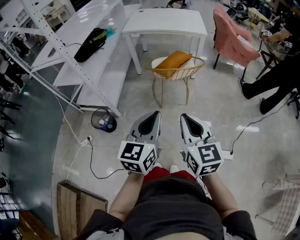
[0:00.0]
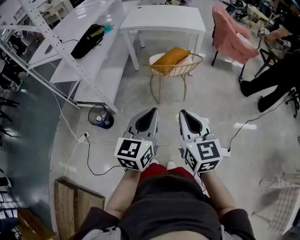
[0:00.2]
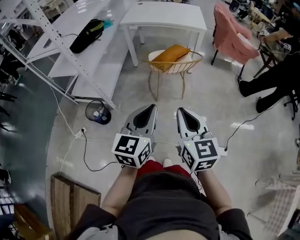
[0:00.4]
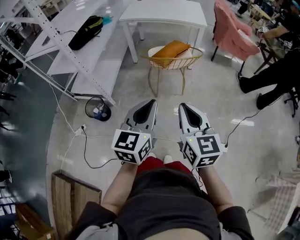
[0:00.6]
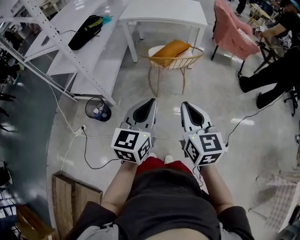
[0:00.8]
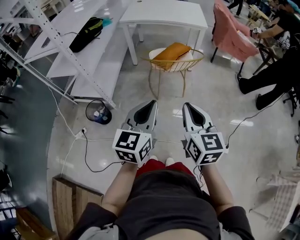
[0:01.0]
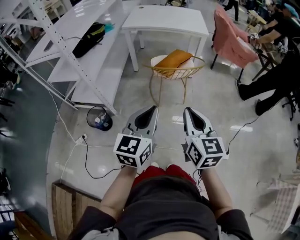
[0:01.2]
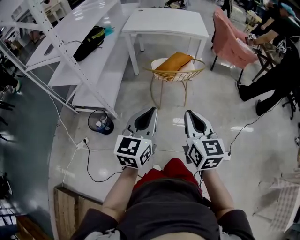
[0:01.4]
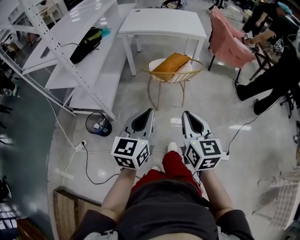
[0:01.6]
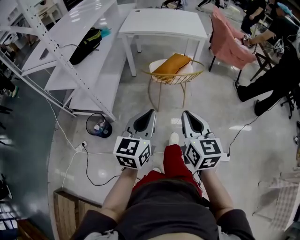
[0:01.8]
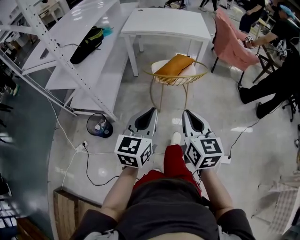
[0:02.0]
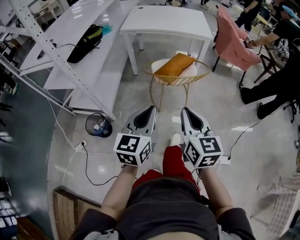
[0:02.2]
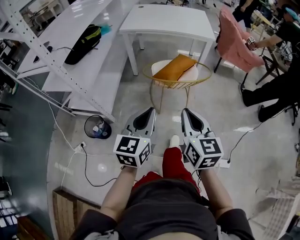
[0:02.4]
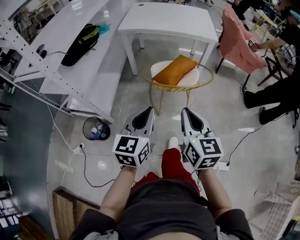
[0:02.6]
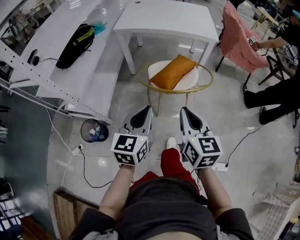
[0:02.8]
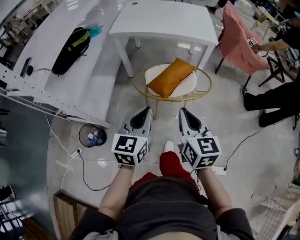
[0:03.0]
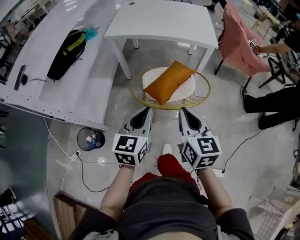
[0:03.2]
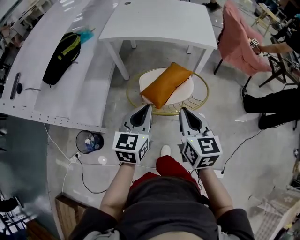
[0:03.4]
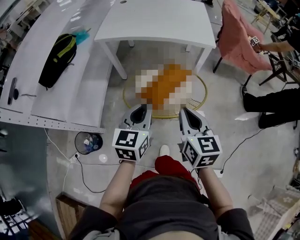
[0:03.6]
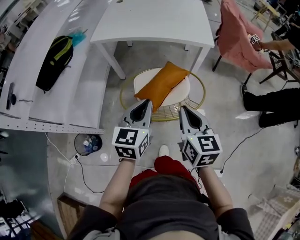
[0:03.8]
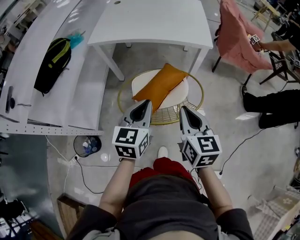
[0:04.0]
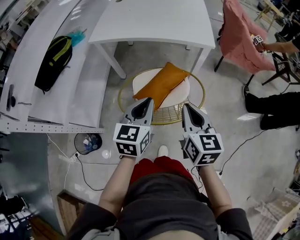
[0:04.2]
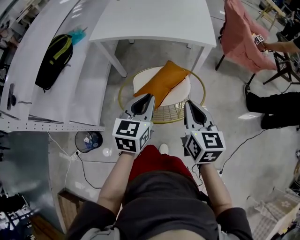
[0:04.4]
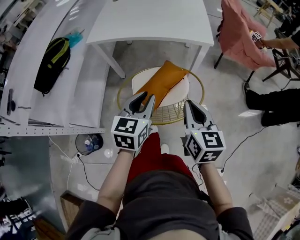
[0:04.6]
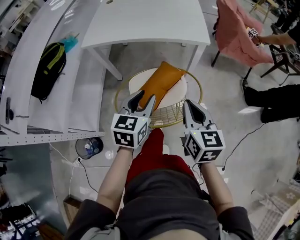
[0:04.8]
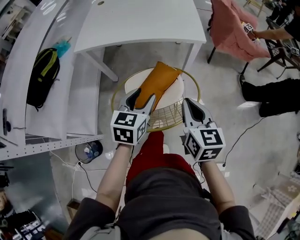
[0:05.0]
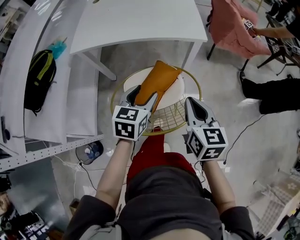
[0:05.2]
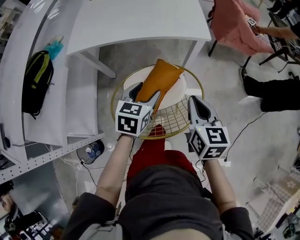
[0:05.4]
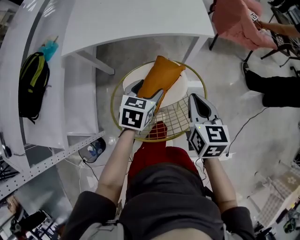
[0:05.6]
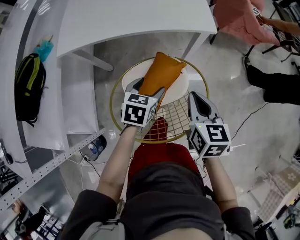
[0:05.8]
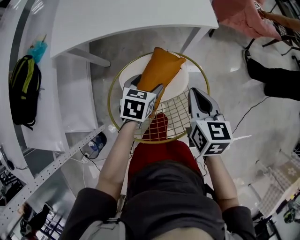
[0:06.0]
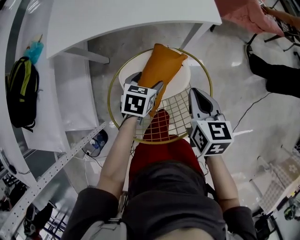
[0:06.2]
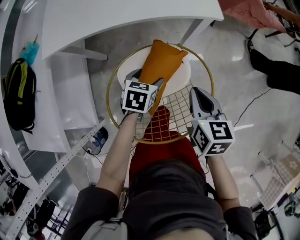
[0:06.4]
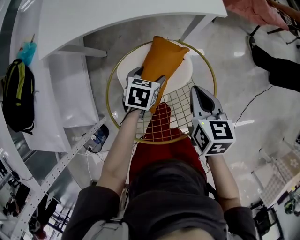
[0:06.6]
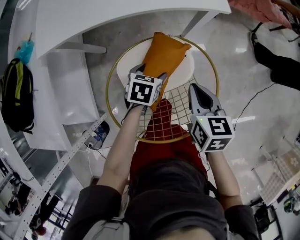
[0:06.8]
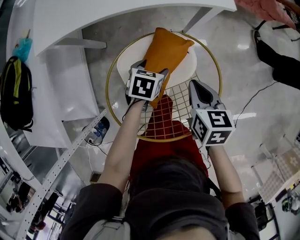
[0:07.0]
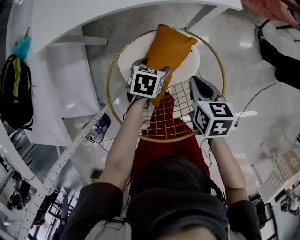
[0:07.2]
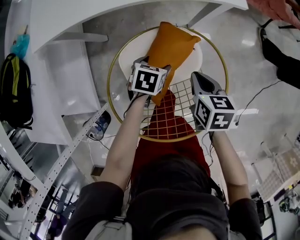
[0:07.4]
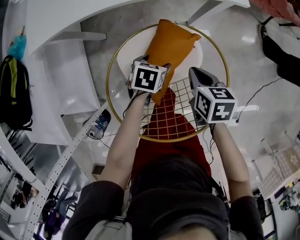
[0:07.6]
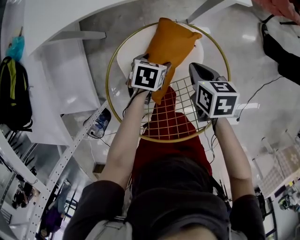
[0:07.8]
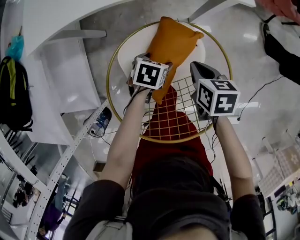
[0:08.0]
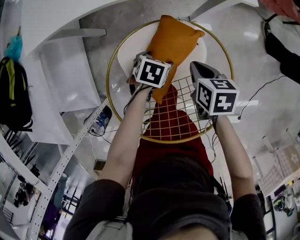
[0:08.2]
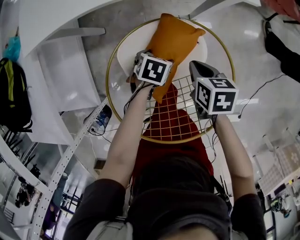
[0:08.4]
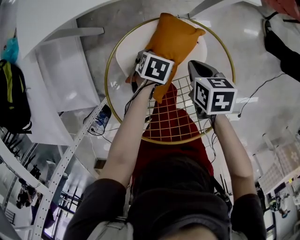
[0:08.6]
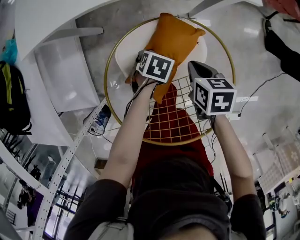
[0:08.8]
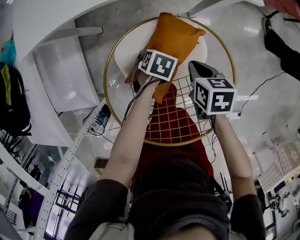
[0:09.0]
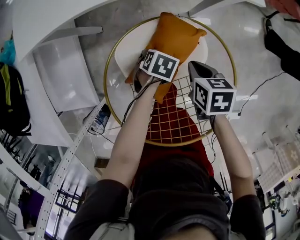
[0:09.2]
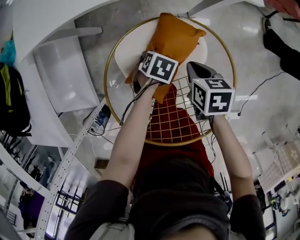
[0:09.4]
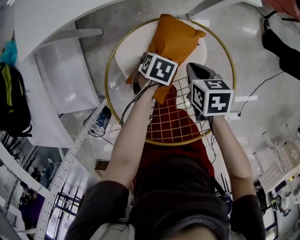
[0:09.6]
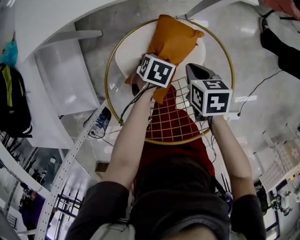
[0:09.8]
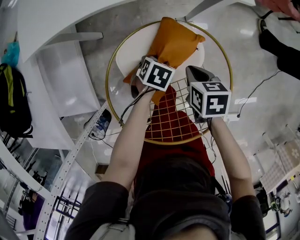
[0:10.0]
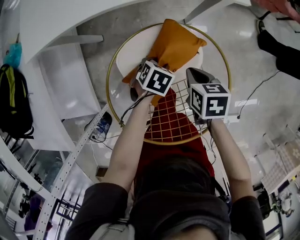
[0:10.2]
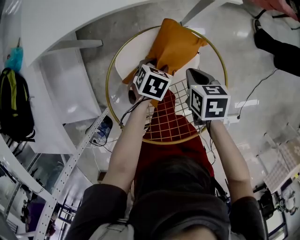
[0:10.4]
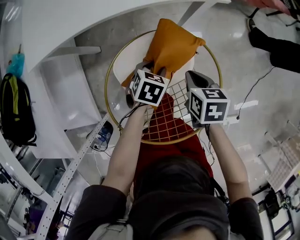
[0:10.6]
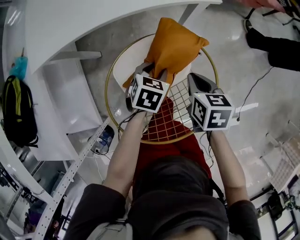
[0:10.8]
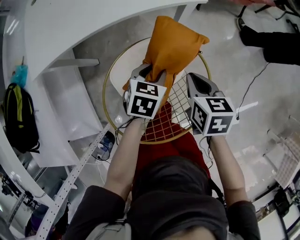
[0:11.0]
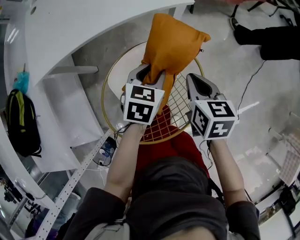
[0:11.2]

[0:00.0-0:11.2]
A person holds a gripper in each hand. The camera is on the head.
0:00.0 to 0:01.6: The left gripper moves to the left and forward, some 10 cm. Meanwhile the right gripper goes about 5 cm forward.
0:01.6 to 0:03.2: The grippers both shift forward by about 35 cm.
0:03.2 to 0:04.8: Both grippers travel together forward and to the right, some 20 cm. The left gripper opens up.
0:04.8 to 0:06.4: The right gripper travels forward and downward by about 15 cm, and changes its angle by roughly 20 degrees. The left gripper shifts about 25 cm downward and forward, changes its angle by roughly 30 degrees, and opens up.
0:06.4 to 0:08.0: The two grippers go some 15 cm downward. The right gripper rotates approximately 20 degrees.
0:08.0 to 0:09.6: The left gripper closes its fingers.
0:09.6 to 0:11.2: The right gripper is displaced upward and to the right by approximately 20 cm, and rotates approximately 30 degrees. Meanwhile the left gripper shifts some 20 cm upward, and swivels about 30 degrees.

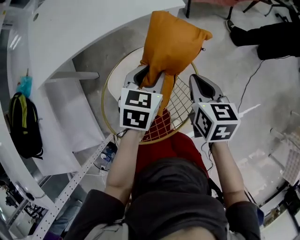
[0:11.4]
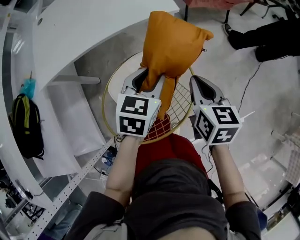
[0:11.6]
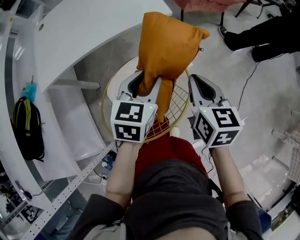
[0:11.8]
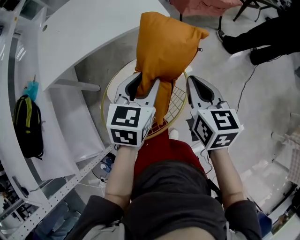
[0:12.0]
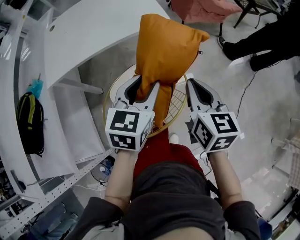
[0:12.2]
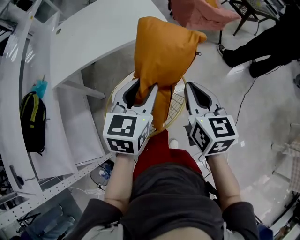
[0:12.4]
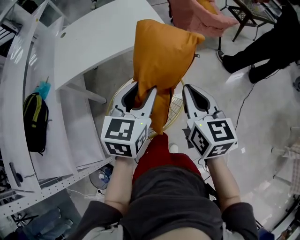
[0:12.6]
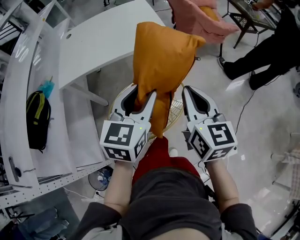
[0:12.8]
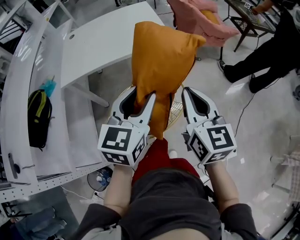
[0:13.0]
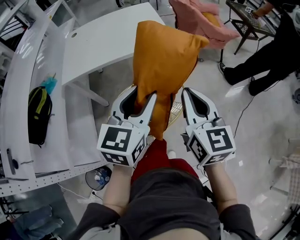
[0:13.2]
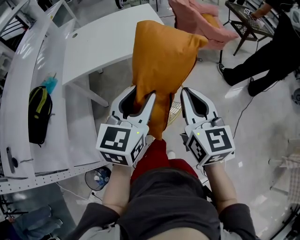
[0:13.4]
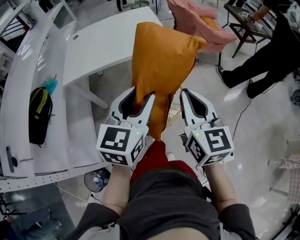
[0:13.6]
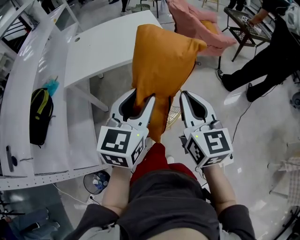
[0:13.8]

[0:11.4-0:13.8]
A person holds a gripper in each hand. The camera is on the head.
0:11.4 to 0:12.6: The two grippers go about 20 cm upward and backward. The left gripper turns by about 20 degrees, while the right gripper rotates roughly 30 degrees.
0:12.6 to 0:13.8: Both grippers travel together upward and backward, approximately 10 cm.

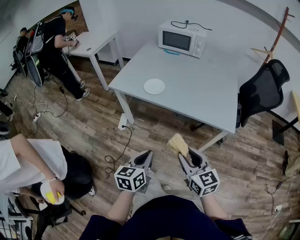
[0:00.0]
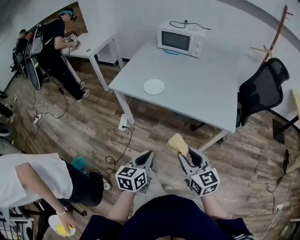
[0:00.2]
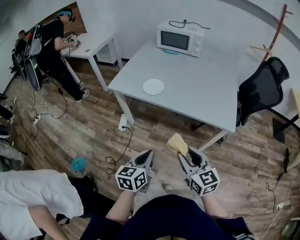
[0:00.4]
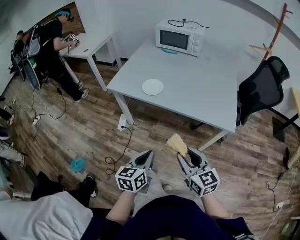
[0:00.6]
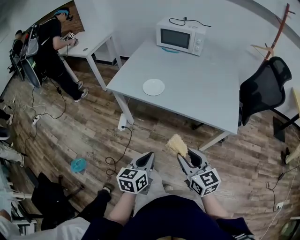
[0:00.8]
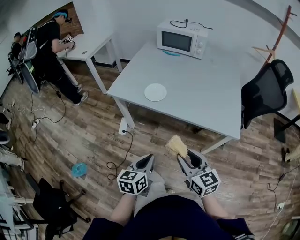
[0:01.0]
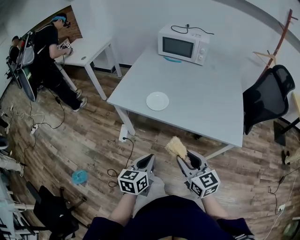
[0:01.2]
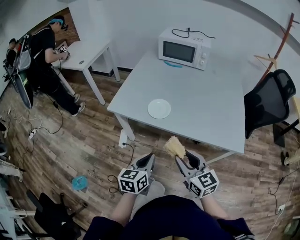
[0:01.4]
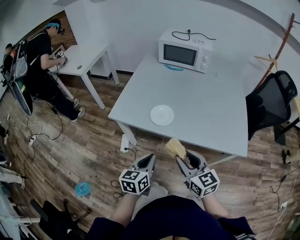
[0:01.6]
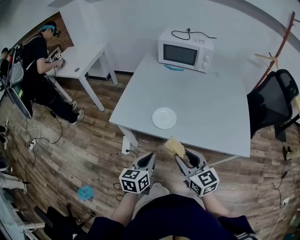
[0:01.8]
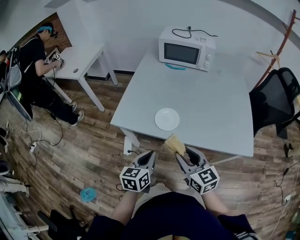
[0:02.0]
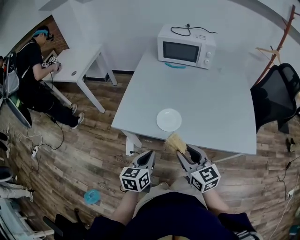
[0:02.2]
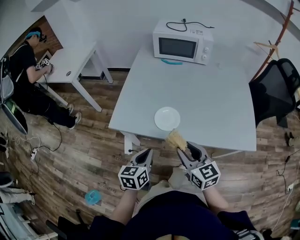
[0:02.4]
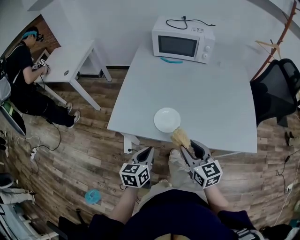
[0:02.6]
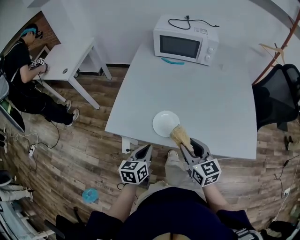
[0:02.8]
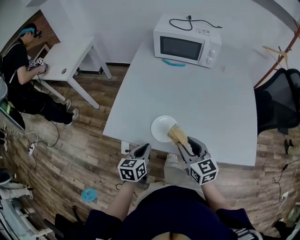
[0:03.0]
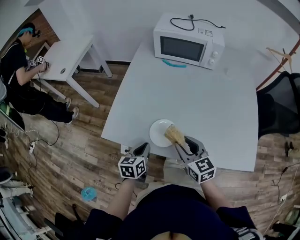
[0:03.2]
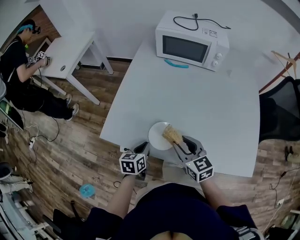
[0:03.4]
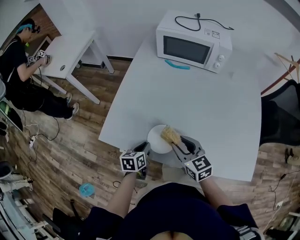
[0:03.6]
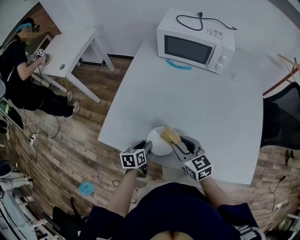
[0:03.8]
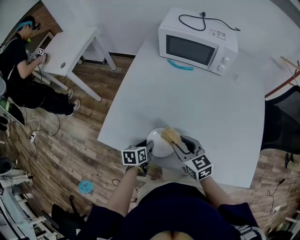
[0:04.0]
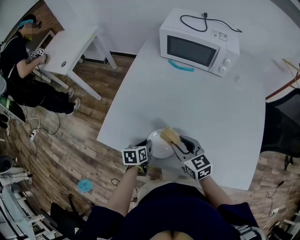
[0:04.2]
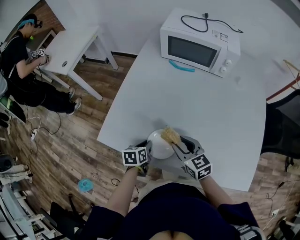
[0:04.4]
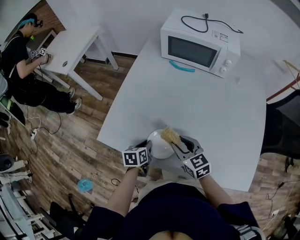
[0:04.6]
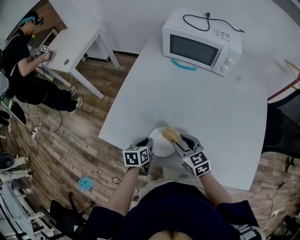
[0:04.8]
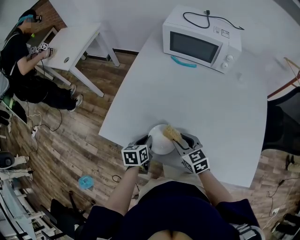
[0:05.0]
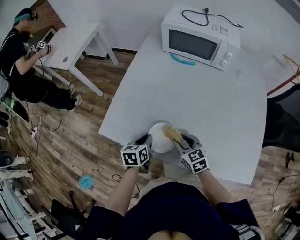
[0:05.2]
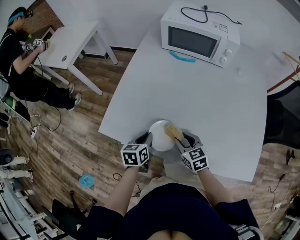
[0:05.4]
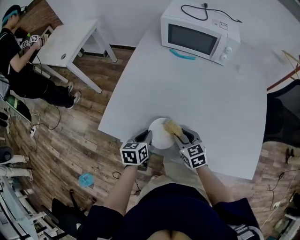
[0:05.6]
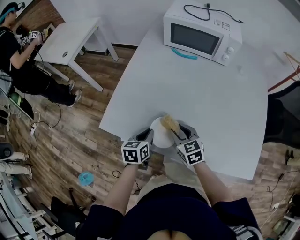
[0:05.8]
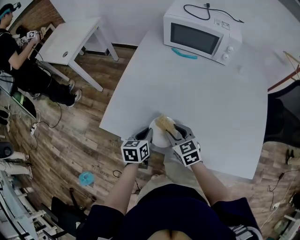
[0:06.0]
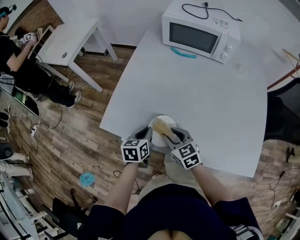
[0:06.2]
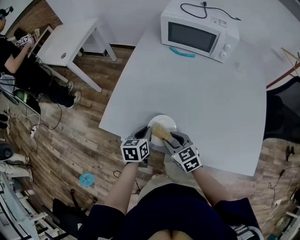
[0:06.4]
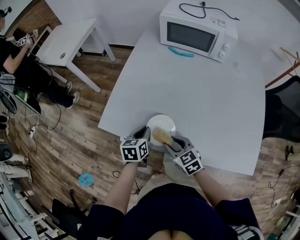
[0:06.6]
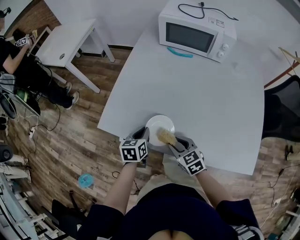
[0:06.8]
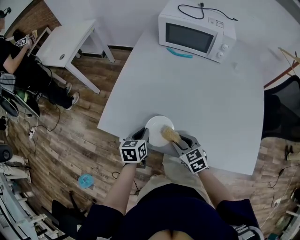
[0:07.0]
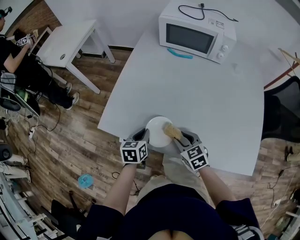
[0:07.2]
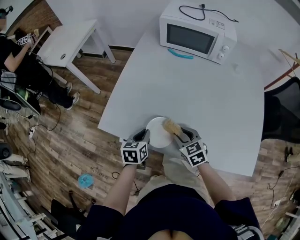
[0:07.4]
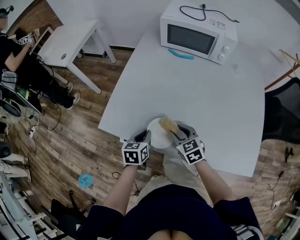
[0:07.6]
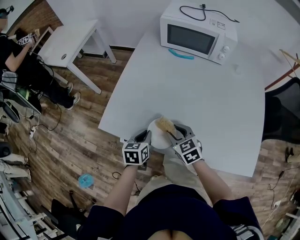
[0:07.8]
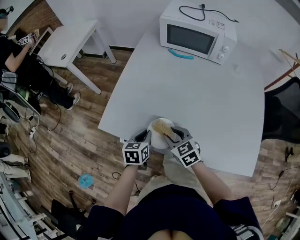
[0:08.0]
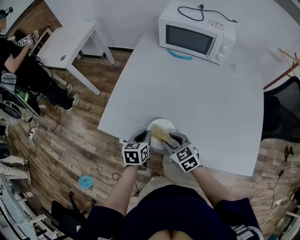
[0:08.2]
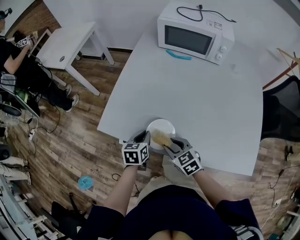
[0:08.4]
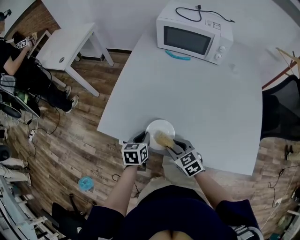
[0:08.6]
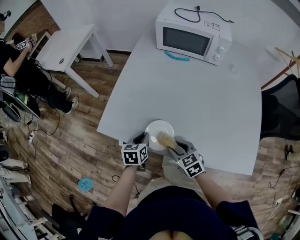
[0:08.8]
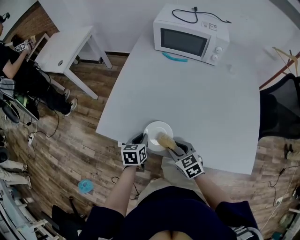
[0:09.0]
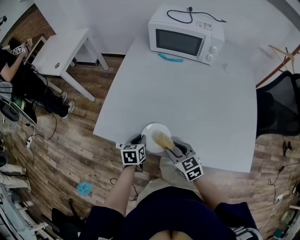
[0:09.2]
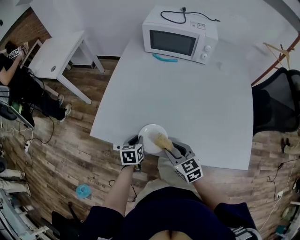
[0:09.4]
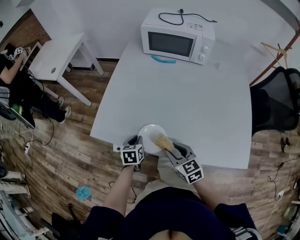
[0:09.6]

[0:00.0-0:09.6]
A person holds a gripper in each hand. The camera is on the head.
0:00.0 to 0:01.6: The right gripper shifts roughly 20 cm forward and to the left, while the left gripper heads forward, covering roughly 20 cm.
0:01.6 to 0:03.2: The two grippers go roughly 20 cm forward.
0:03.2 to 0:04.8: The two grippers go approximately 10 cm forward and downward.
0:04.8 to 0:06.4: The right gripper heads to the left and backward, covering roughly 10 cm.
0:08.0 to 0:09.6: The right gripper travels backward by about 10 cm.
